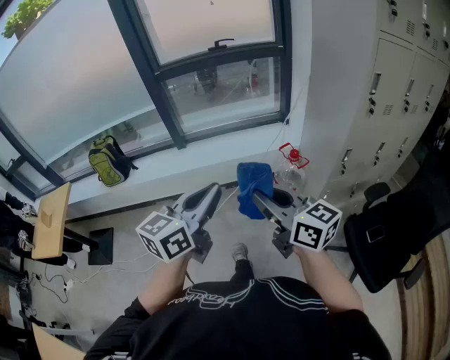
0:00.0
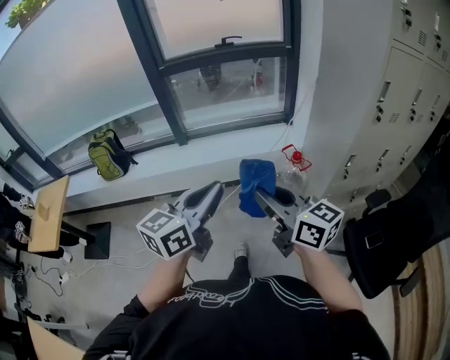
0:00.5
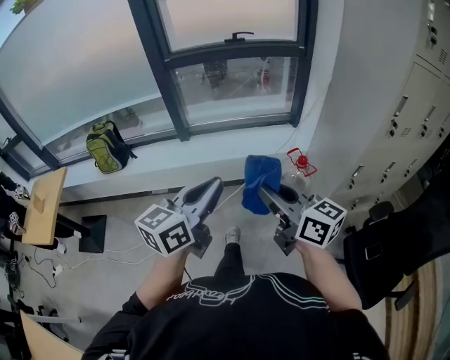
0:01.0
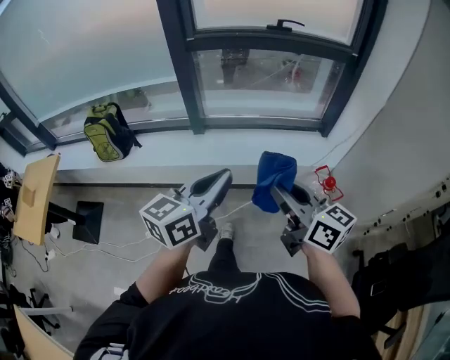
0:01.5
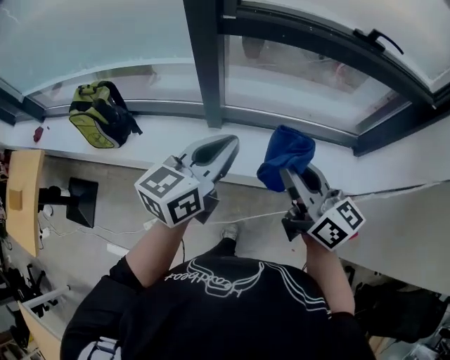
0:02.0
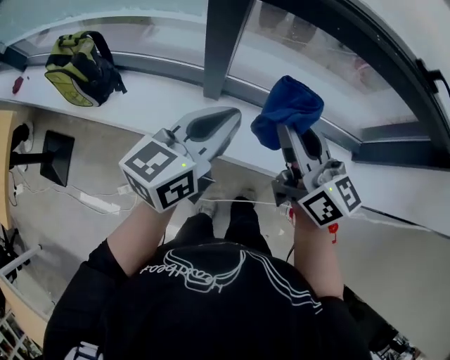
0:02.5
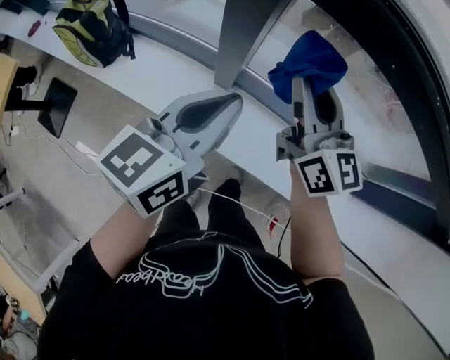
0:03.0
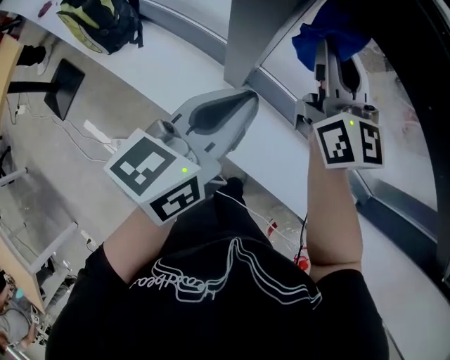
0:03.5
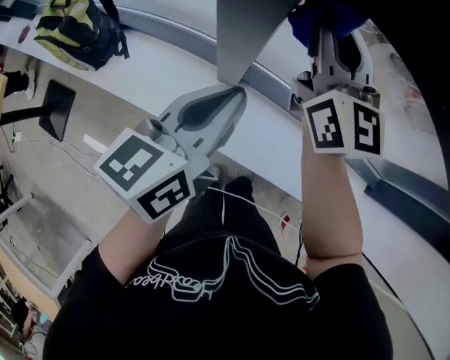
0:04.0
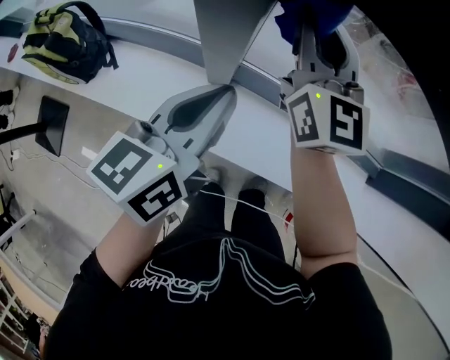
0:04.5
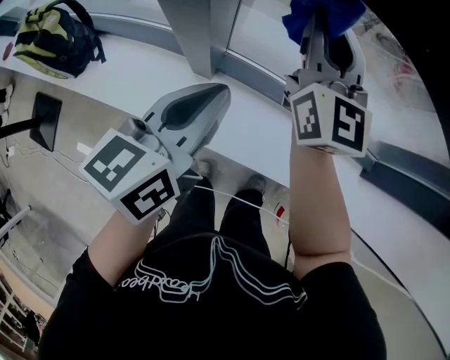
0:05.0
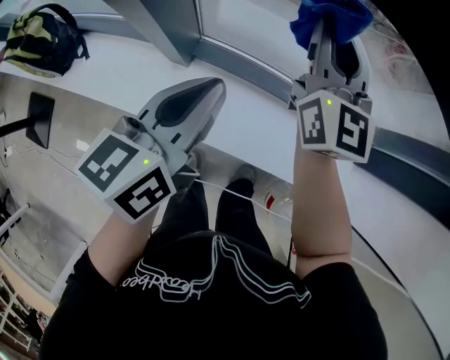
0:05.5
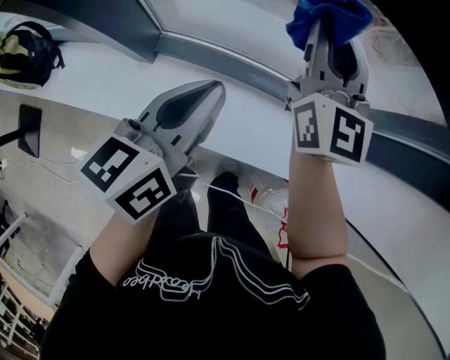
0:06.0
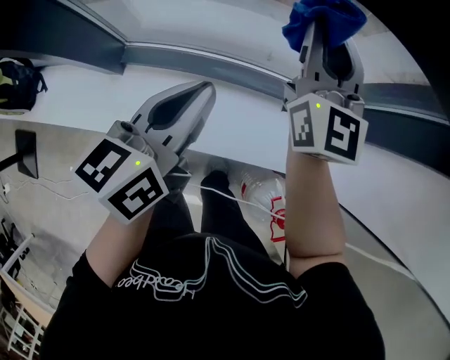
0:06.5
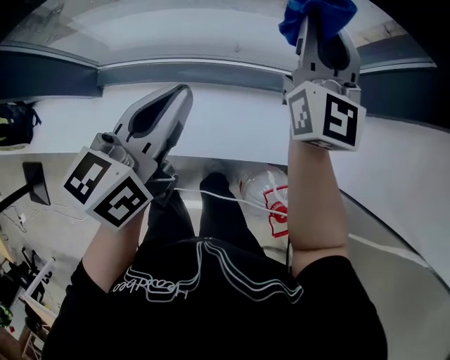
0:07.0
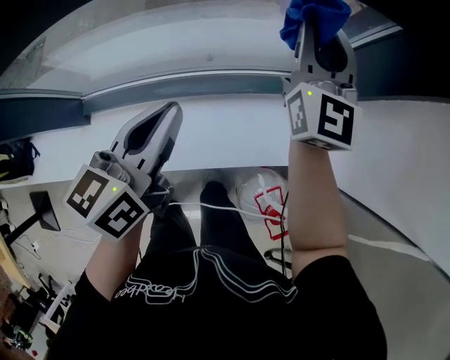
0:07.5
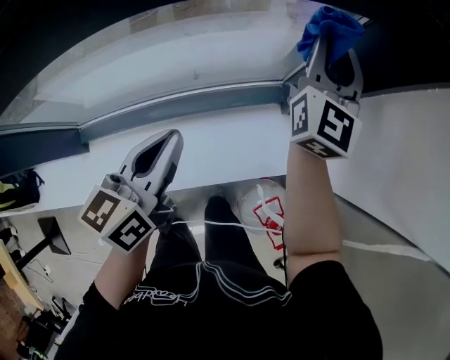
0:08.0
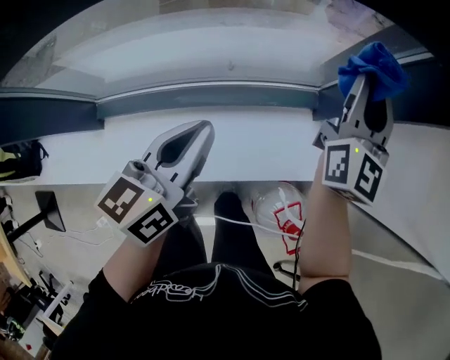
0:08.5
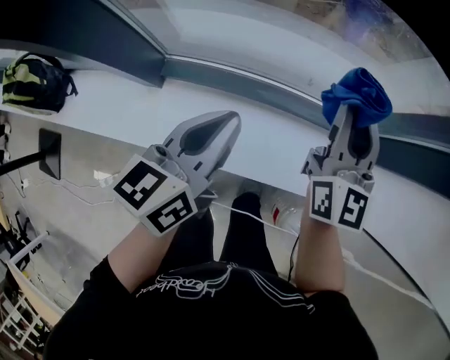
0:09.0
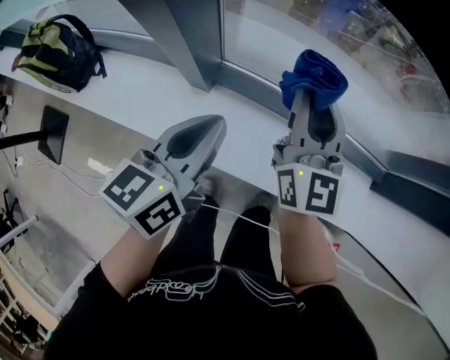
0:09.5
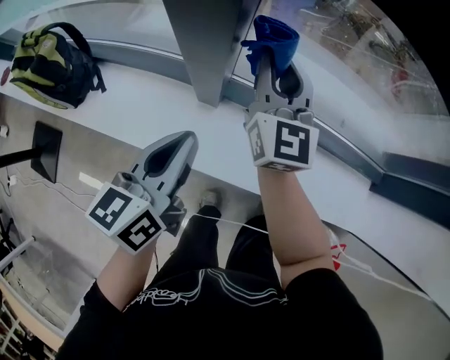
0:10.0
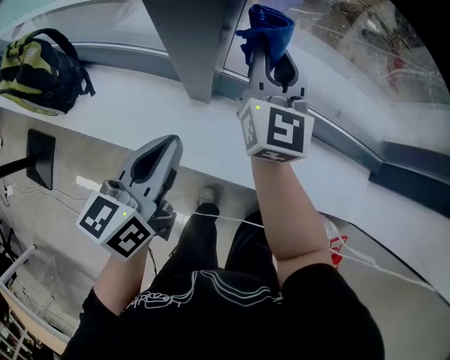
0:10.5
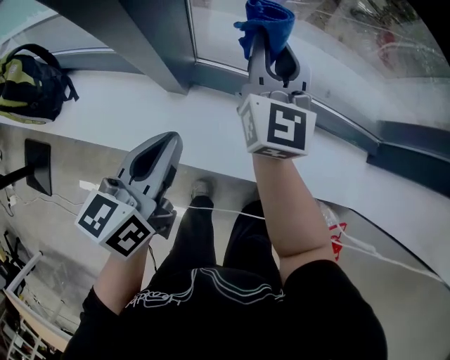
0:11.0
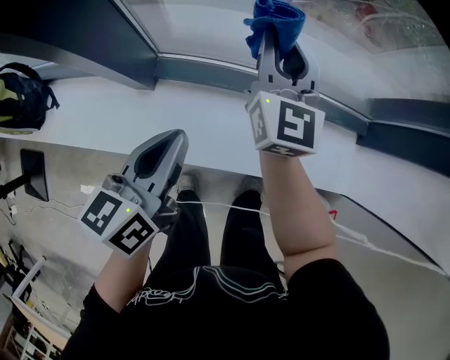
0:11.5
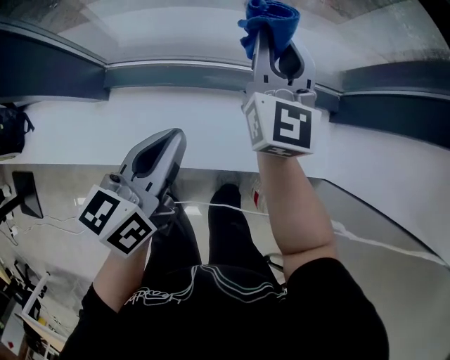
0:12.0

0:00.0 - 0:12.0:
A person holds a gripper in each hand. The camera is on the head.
0:00.0 - 0:02.0: Both grippers are carried forward, about 70 cm.
0:02.0 - 0:04.0: The left gripper travels forward and downward by roughly 30 cm, and rotates approximately 30 degrees, while the right gripper goes roughly 40 cm forward, and turns by some 30 degrees.
0:04.0 - 0:06.0: The two grippers go approximately 30 cm to the right.
0:06.0 - 0:08.0: The right gripper shifts by some 50 cm, and rotates some 40 degrees, while the left gripper moves some 30 cm, and changes its angle by some 20 degrees.
0:08.0 - 0:10.0: Both grippers are carried about 70 cm. The left gripper turns by roughly 30 degrees, while the right gripper rotates about 40 degrees.
0:10.0 - 0:12.0: Both grippers travel together to the right, about 35 cm.

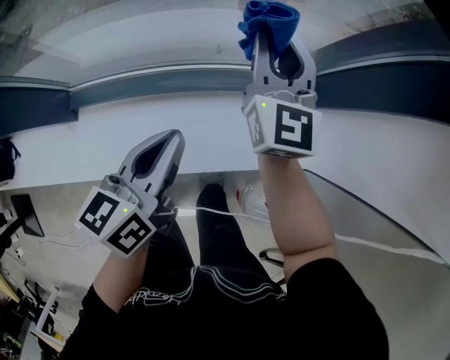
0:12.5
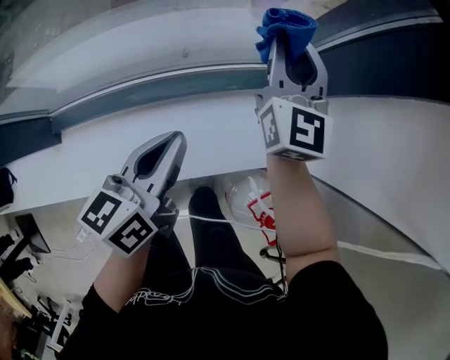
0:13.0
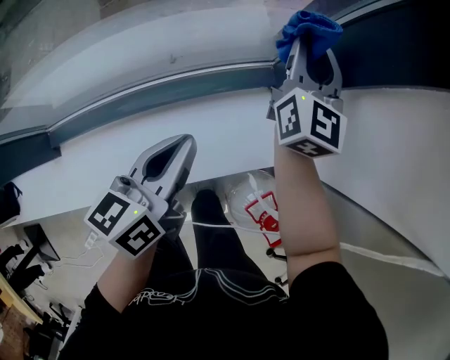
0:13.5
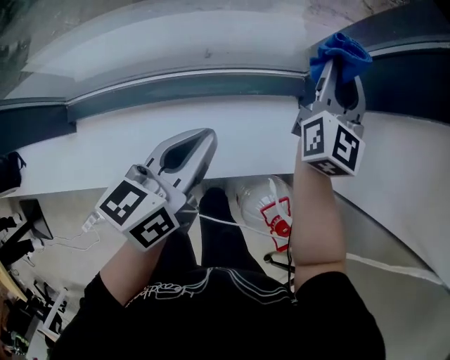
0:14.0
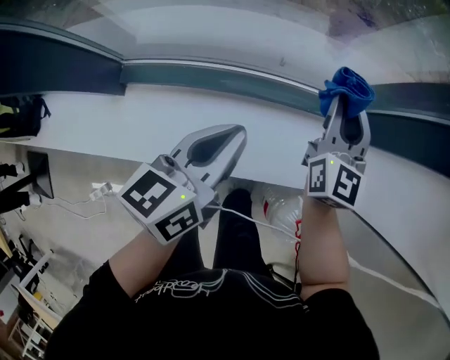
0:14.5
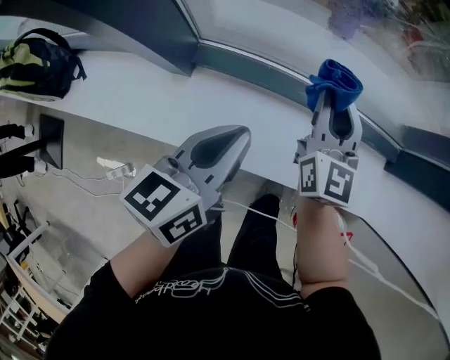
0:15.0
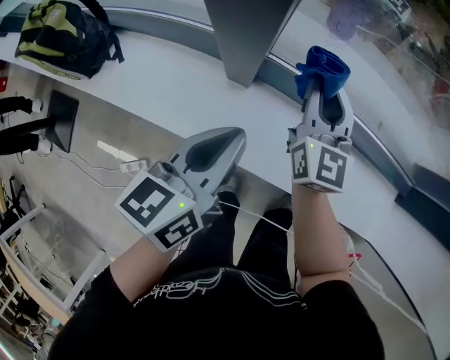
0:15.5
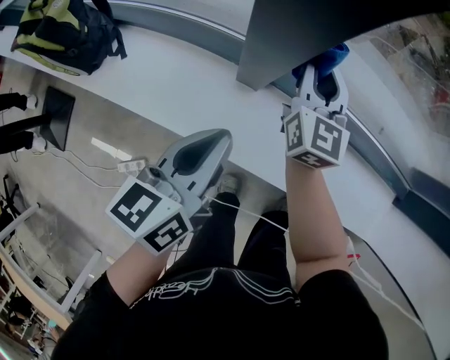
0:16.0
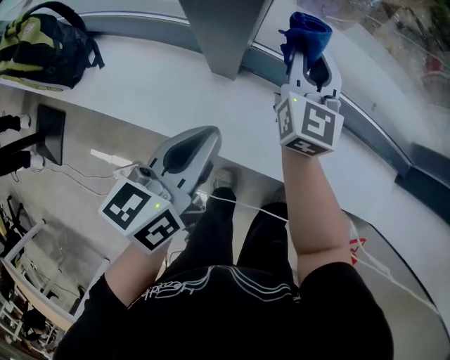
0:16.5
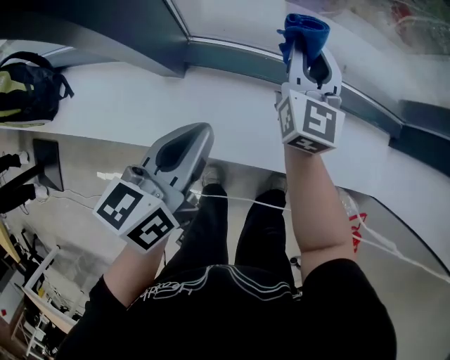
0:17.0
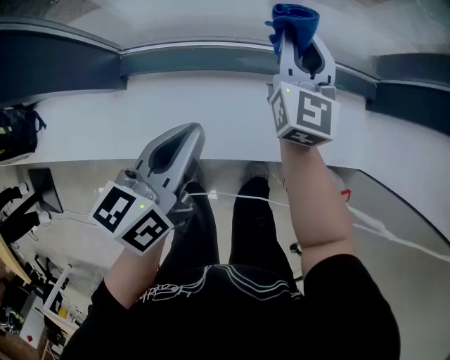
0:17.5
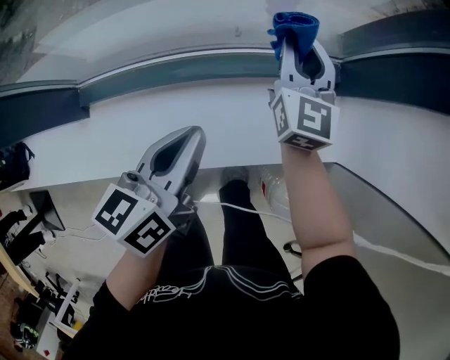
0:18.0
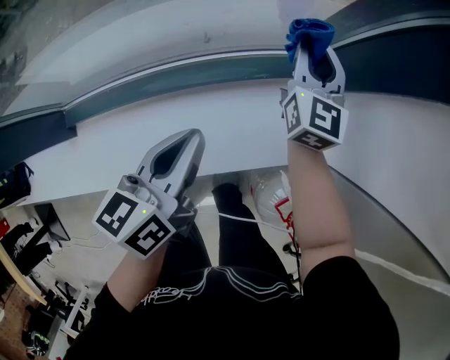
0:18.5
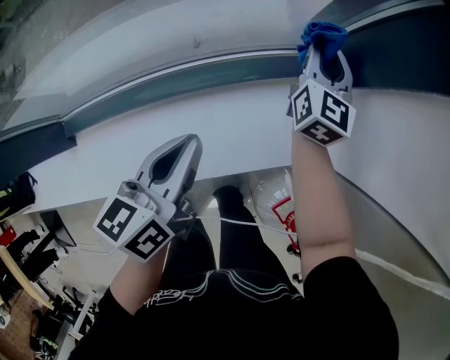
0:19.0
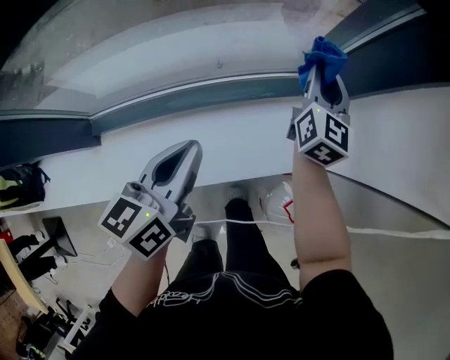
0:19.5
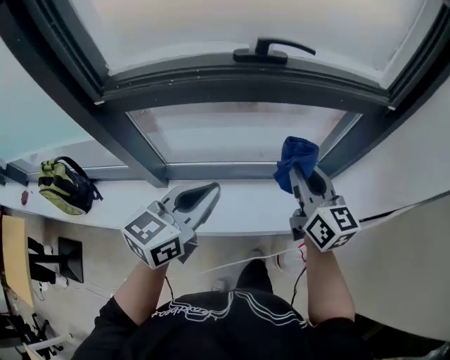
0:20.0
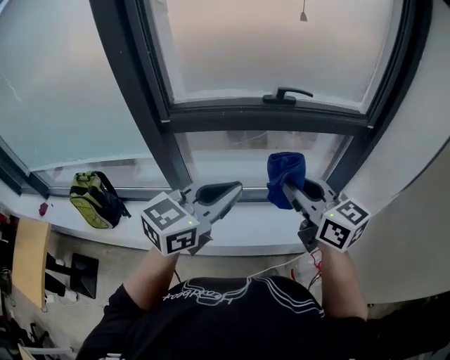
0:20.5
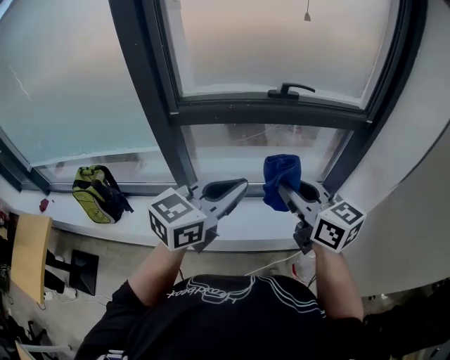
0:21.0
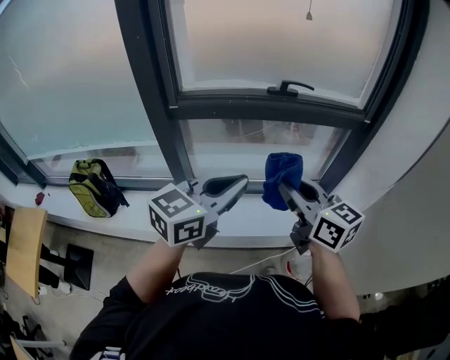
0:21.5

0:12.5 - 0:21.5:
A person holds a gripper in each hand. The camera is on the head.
0:12.5 - 0:14.5: The right gripper moves downward, approximately 5 cm, and goes to the right and returns, about 20 cm each way. The left gripper goes to the right and returns, roughly 15 cm each way.
0:14.5 - 0:17.0: The grippers both shift to the left by roughly 30 cm.
0:17.0 - 0:19.5: The right gripper travels to the right by roughly 50 cm, and swivels approximately 30 degrees. Meanwhile the left gripper shifts approximately 35 cm to the right and forward.
0:19.5 - 0:21.5: The right gripper goes some 70 cm backward, upward and to the left, and changes its angle by approximately 50 degrees; the left gripper goes about 50 cm upward and backward, and turns by roughly 40 degrees.

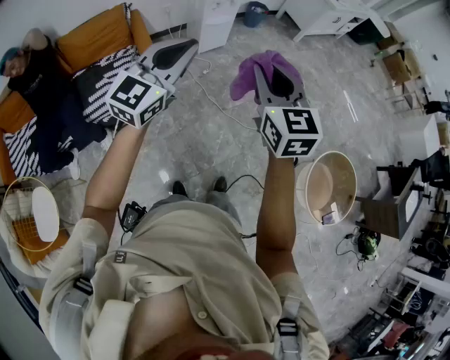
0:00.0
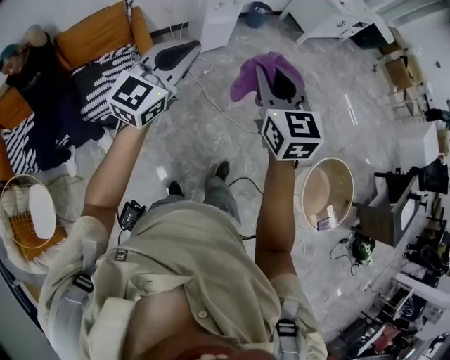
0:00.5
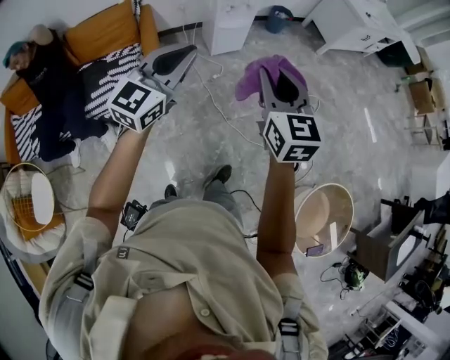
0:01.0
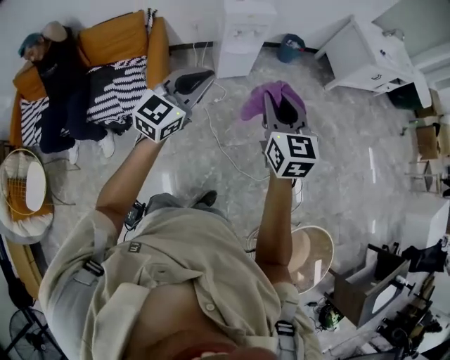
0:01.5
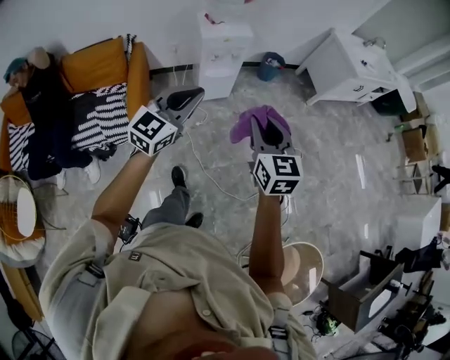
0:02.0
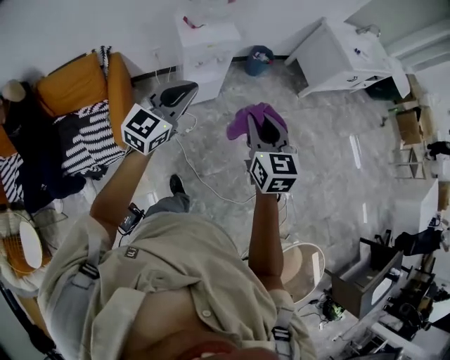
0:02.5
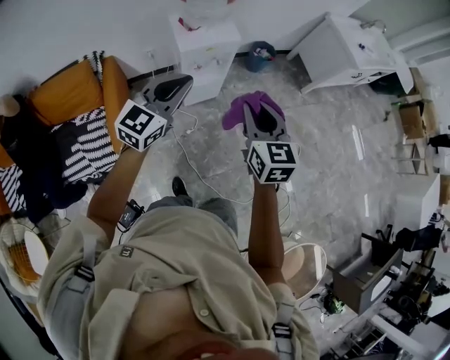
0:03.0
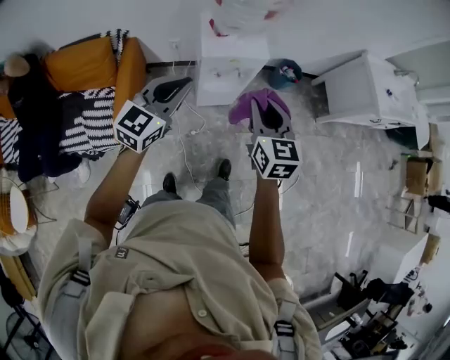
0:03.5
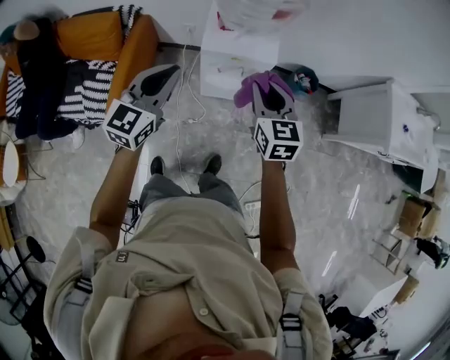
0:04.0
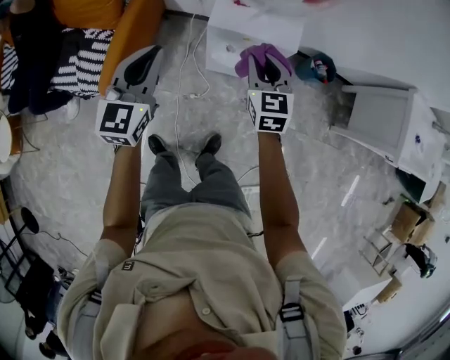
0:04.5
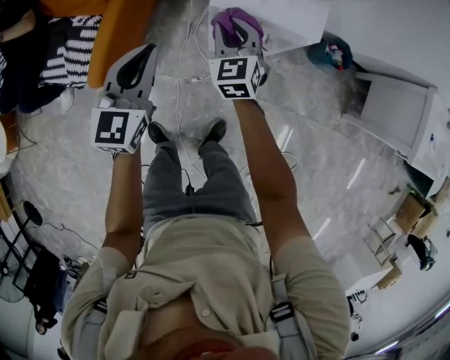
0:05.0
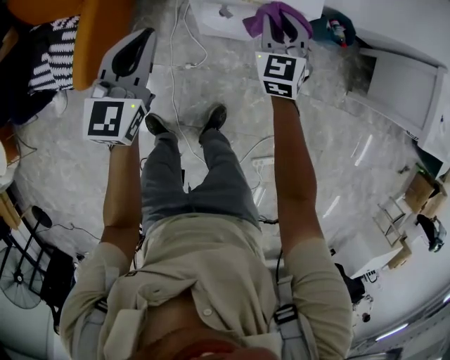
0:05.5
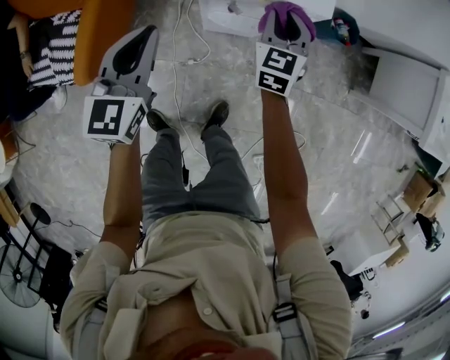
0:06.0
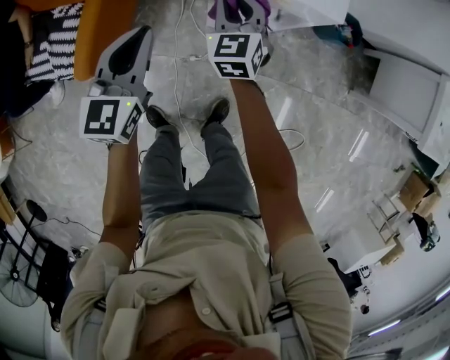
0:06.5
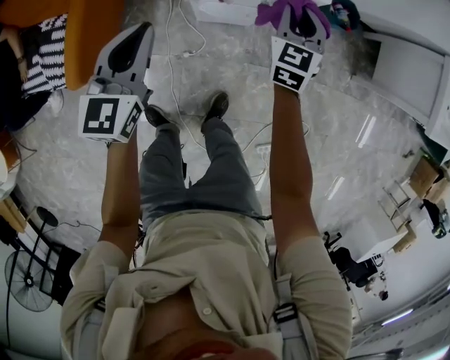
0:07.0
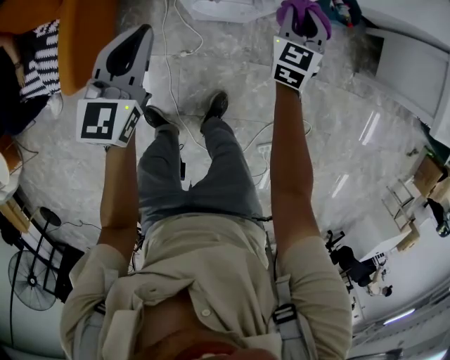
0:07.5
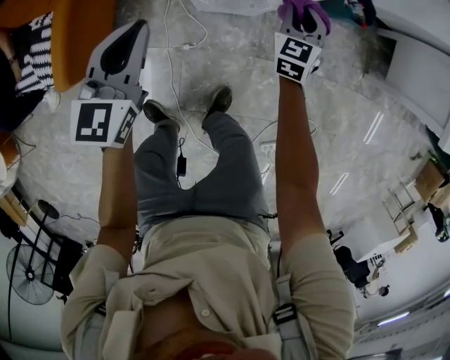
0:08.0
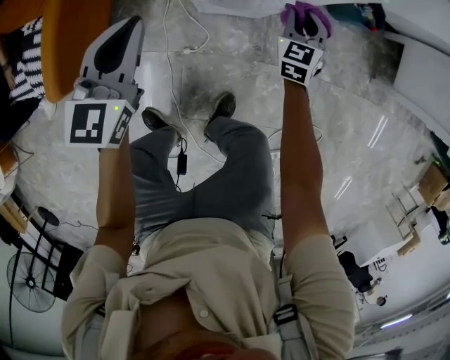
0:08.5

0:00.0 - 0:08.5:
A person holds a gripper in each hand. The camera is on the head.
0:00.0 - 0:02.0: Both grippers move forward and to the right, roughly 40 cm.
0:02.0 - 0:04.0: The pair of grippers is taken about 50 cm. The left gripper changes its angle by about 30 degrees. The right gripper rotates about 20 degrees.
0:04.0 - 0:06.5: The right gripper heads downward, forward and to the left, covering about 35 cm. Meanwhile the left gripper travels downward by roughly 25 cm.
0:06.5 - 0:08.5: The right gripper is displaced to the right and downward by roughly 35 cm; the left gripper shifts approximately 15 cm downward and to the right.
